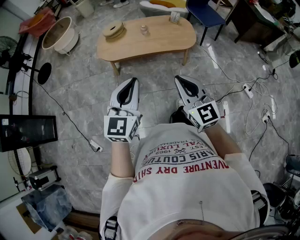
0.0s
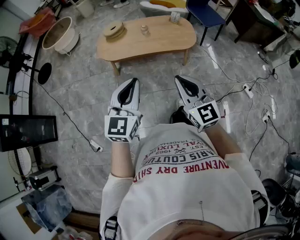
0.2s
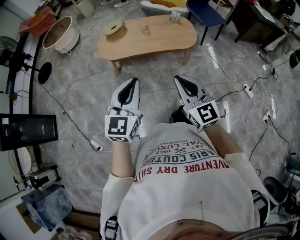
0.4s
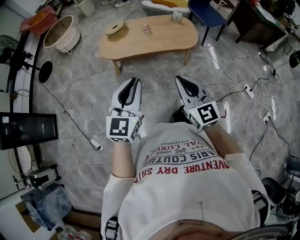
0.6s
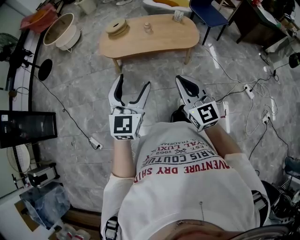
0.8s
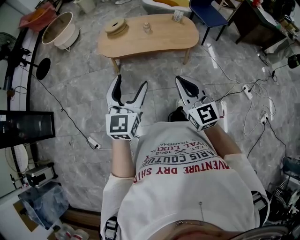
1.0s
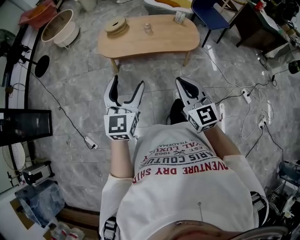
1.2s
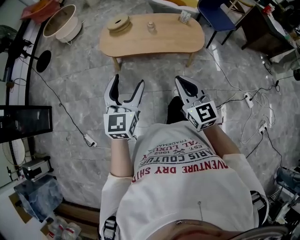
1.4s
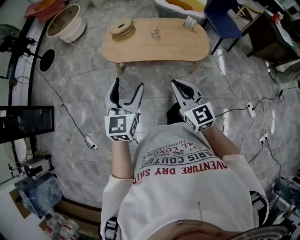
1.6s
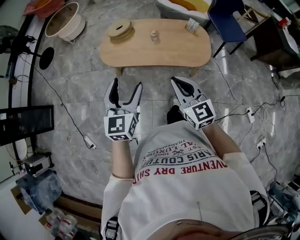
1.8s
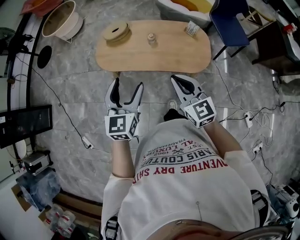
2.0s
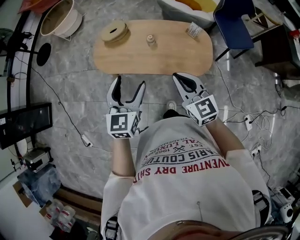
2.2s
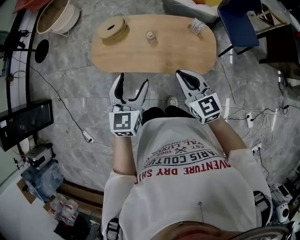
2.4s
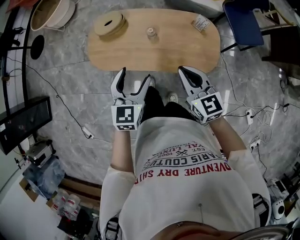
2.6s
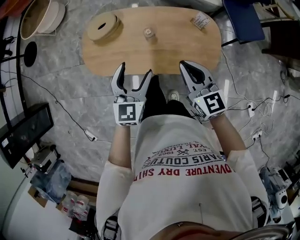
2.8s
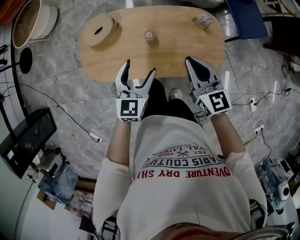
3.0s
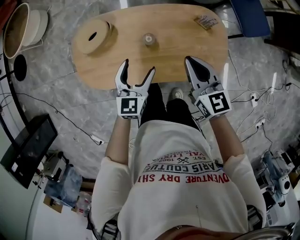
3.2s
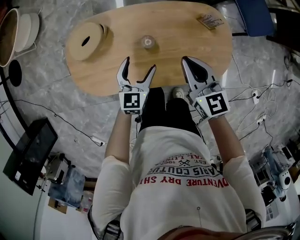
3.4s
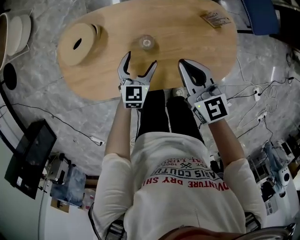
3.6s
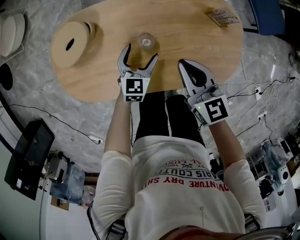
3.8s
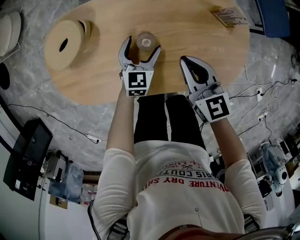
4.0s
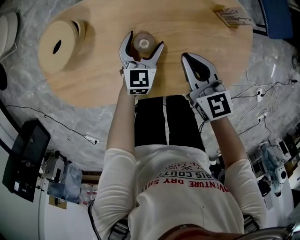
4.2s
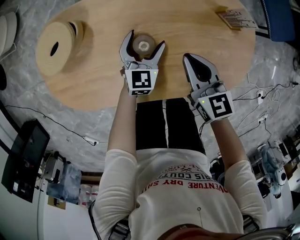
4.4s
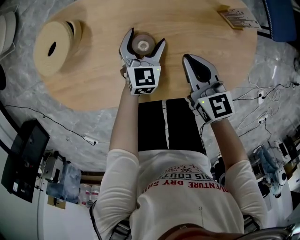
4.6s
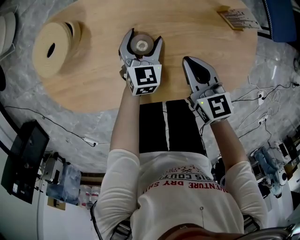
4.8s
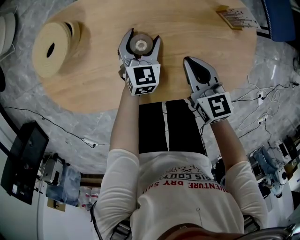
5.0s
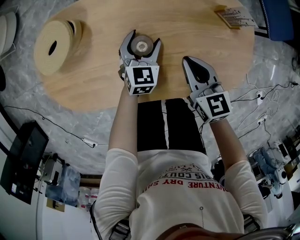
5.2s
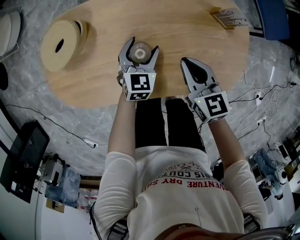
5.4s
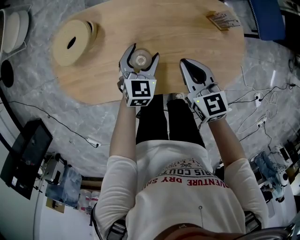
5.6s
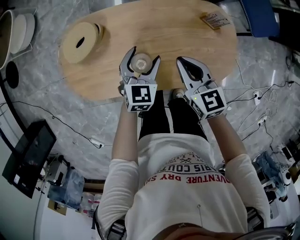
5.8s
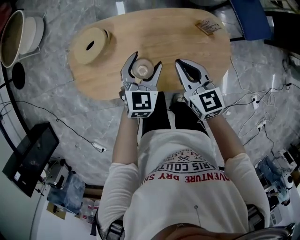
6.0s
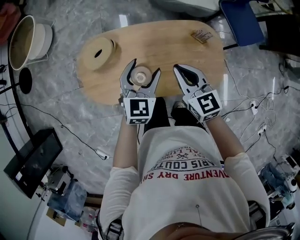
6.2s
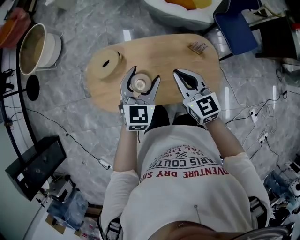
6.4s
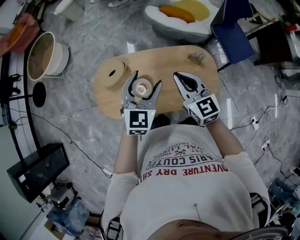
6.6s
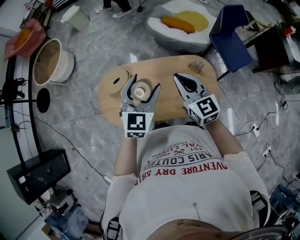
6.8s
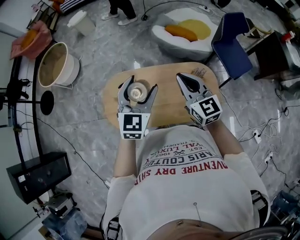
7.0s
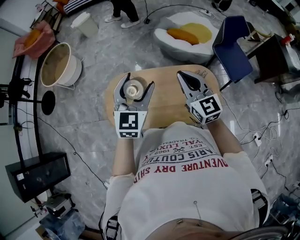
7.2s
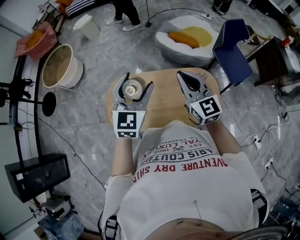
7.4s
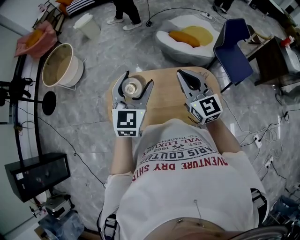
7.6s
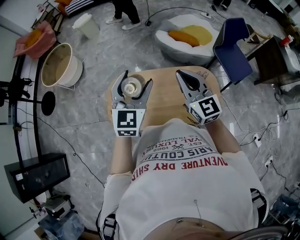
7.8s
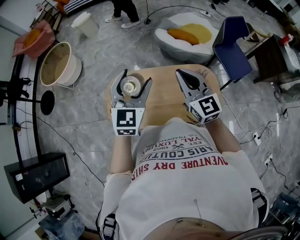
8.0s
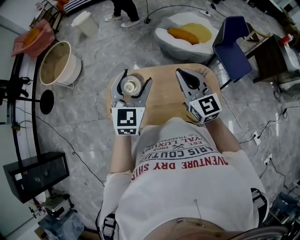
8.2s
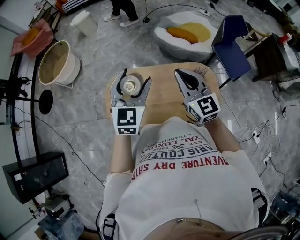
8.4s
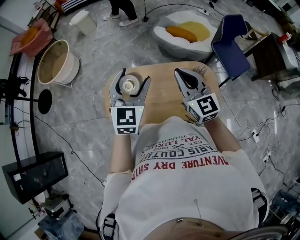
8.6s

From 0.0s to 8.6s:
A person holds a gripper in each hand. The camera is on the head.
From 0.0s to 1.4s: Both grippers travel together forward, about 5 cm. The left gripper opens its fingers.
From 1.4s to 2.8s: The two grippers travel together, forward and to the right, some 50 cm.
From 2.8s to 4.4s: The grippers both shift downward and forward by roughly 40 cm. The right gripper changes its angle by approximately 20 degrees.
From 4.4s to 5.8s: The two grippers go roughly 15 cm upward.
From 5.8s to 7.2s: Both grippers move upward, about 35 cm. The right gripper swivels about 30 degrees. The left gripper changes its angle by roughly 30 degrees.
From 7.2s to 8.6s: The grippers move only a little.

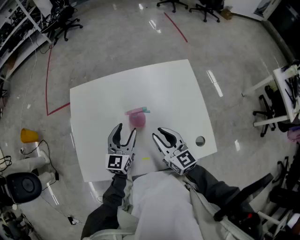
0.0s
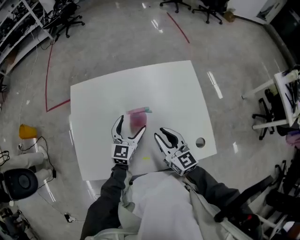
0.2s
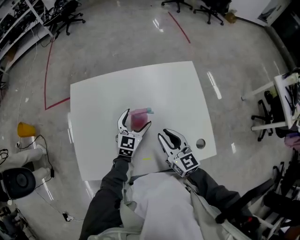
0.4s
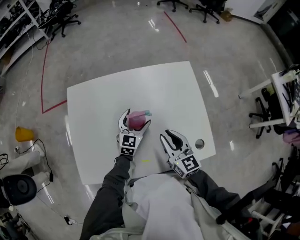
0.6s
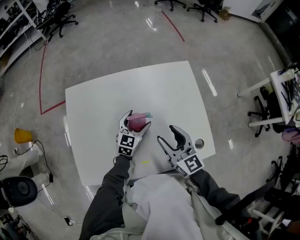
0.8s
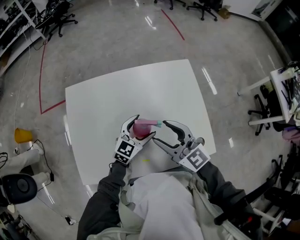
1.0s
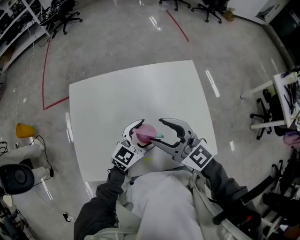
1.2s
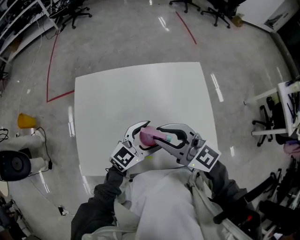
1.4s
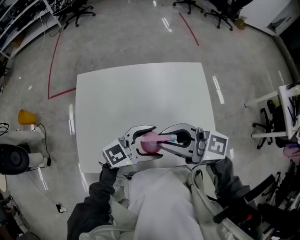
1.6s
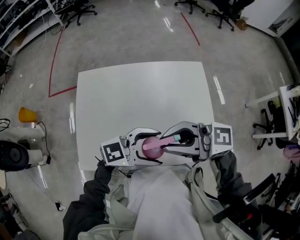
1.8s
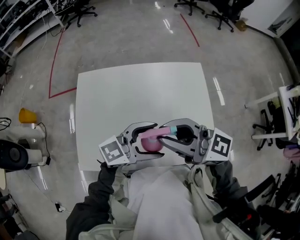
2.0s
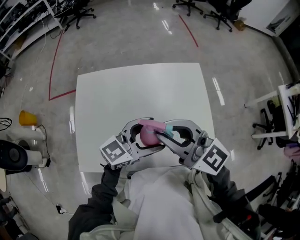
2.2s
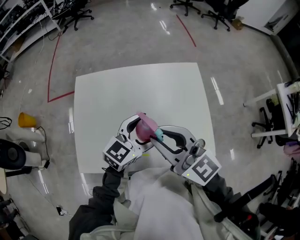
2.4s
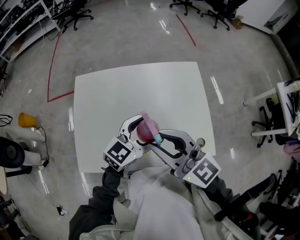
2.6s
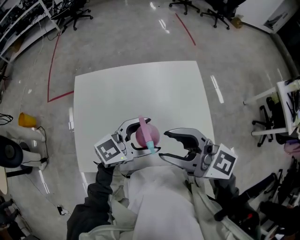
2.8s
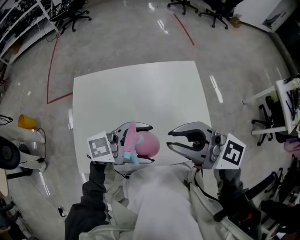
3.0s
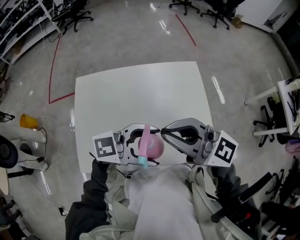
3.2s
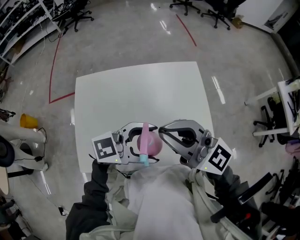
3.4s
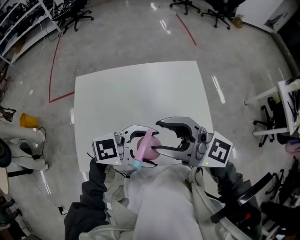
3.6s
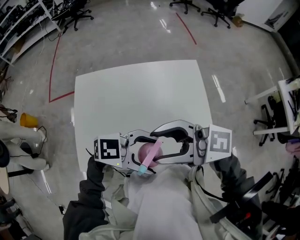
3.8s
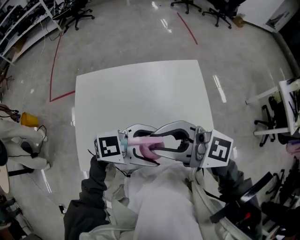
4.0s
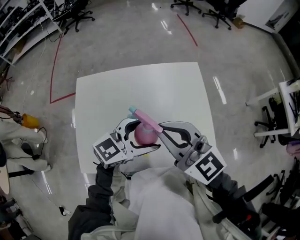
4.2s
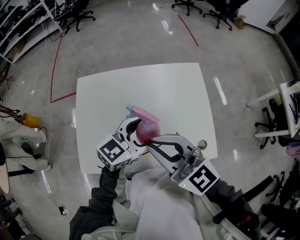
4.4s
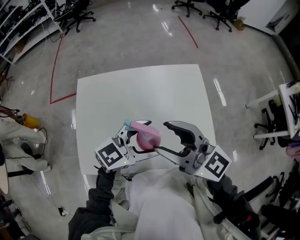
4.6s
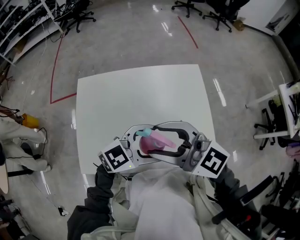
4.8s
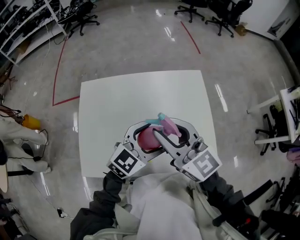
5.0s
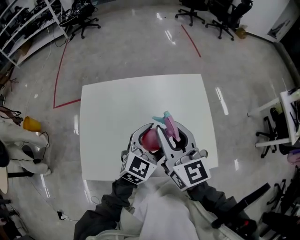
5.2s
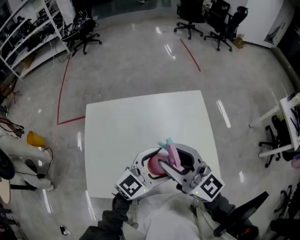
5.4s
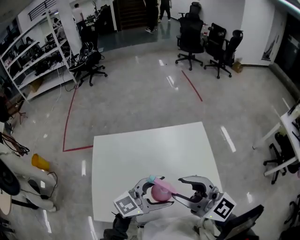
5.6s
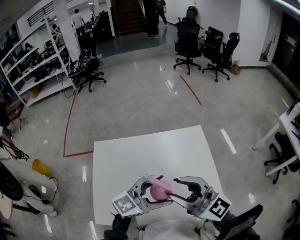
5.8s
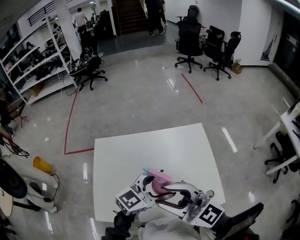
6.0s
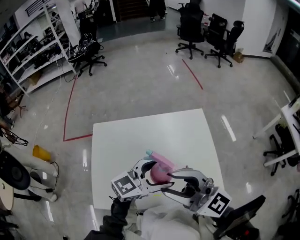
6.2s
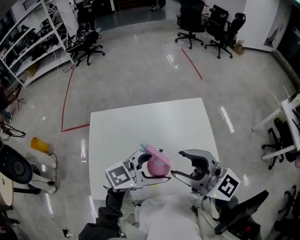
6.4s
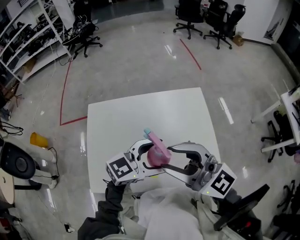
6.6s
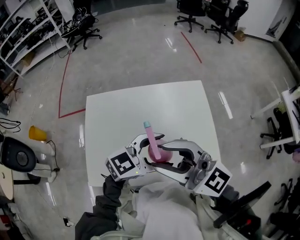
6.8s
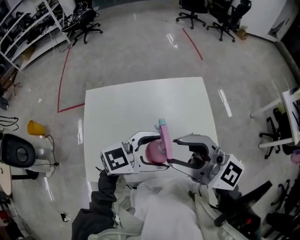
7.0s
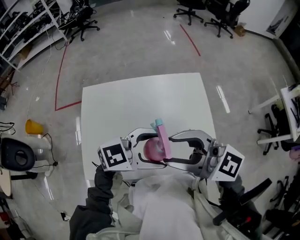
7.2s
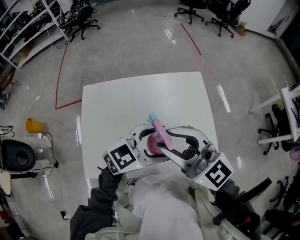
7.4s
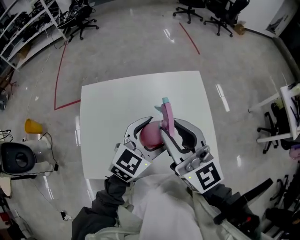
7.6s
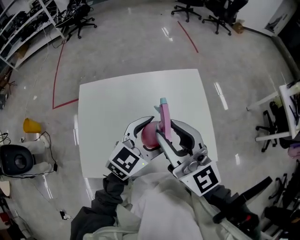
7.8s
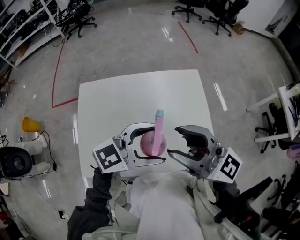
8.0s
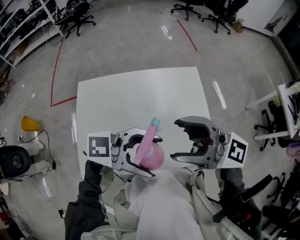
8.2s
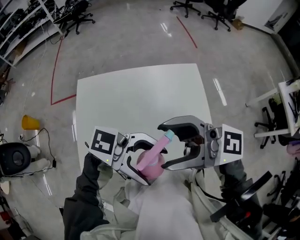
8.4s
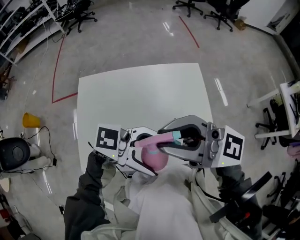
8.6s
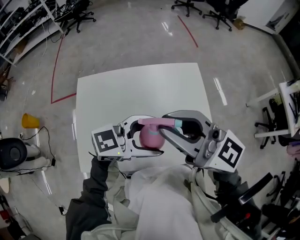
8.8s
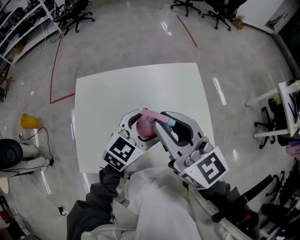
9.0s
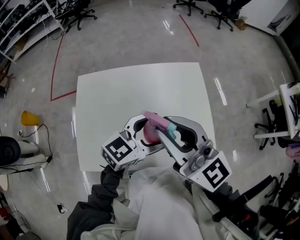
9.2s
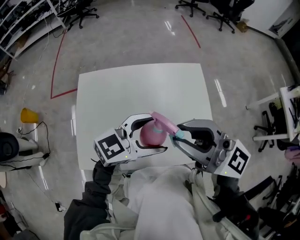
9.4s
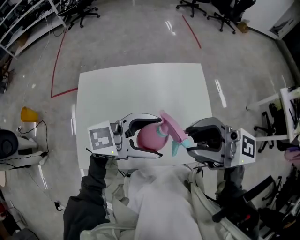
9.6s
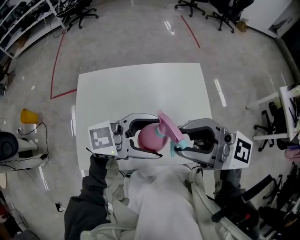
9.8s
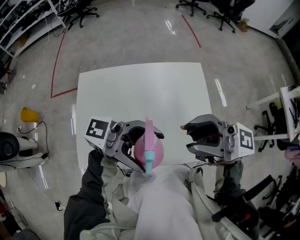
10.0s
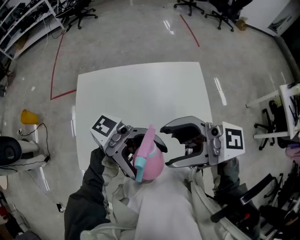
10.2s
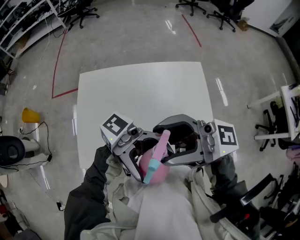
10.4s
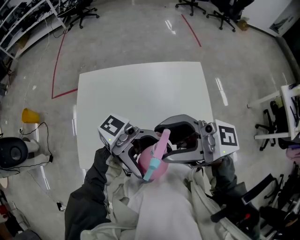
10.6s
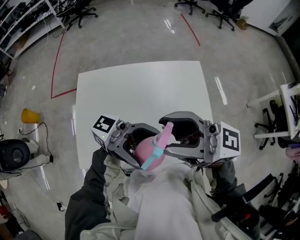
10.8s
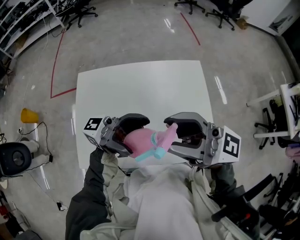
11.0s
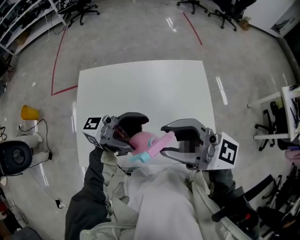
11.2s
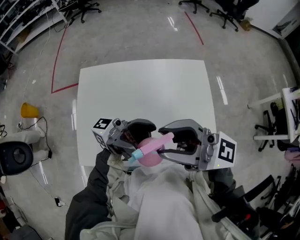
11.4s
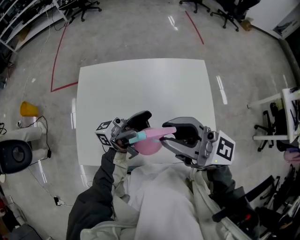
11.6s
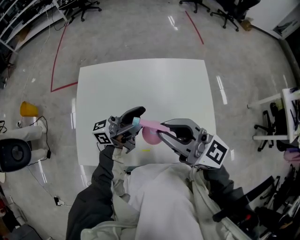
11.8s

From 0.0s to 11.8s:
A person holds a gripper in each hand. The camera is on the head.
From 0.0s to 1.4s: The left gripper travels to the right by about 10 cm, swivels roughly 40 degrees, and opens, while the right gripper goes about 15 cm upward, changes its angle by approximately 30 degrees, and opens and closes again.
From 1.4s to 3.0s: Both grippers move upward, about 10 cm. The left gripper swivels some 30 degrees.
From 3.0s to 4.4s: The right gripper shifts by roughly 5 cm, and closes. The left gripper shifts by some 5 cm, and swivels roughly 30 degrees.
From 4.4s to 6.0s: The right gripper goes some 5 cm upward, and opens.
From 7.4s to 8.8s: The right gripper opens, then closes again.
From 8.8s to 10.4s: The right gripper changes its angle by roughly 40 degrees, and opens. Meanwhile the left gripper moves some 10 cm, and angles its fingers upward, by approximately 40 degrees.
From 10.4s to 11.8s: The right gripper moves downward, about 10 cm, changes its angle by some 30 degrees, and closes up, while the left gripper shifts by approximately 20 cm, and rotates some 60 degrees.

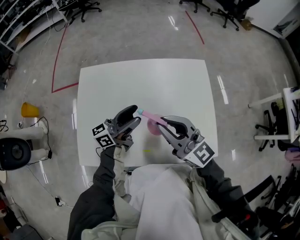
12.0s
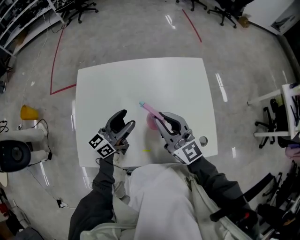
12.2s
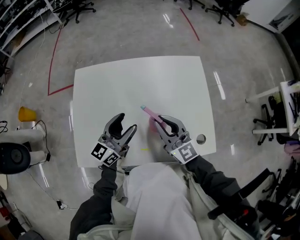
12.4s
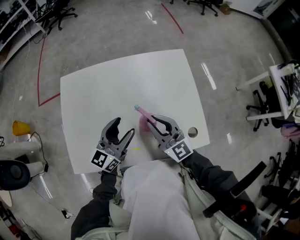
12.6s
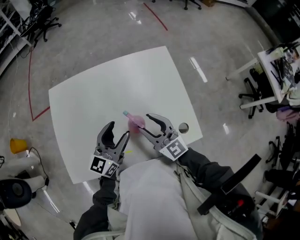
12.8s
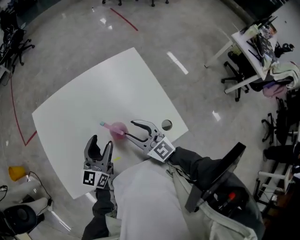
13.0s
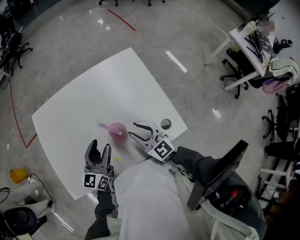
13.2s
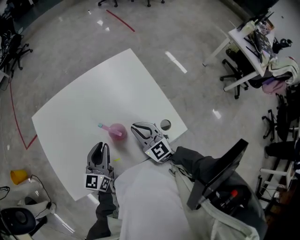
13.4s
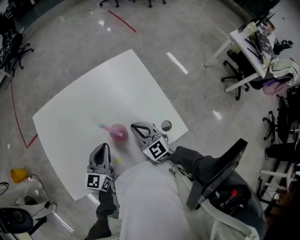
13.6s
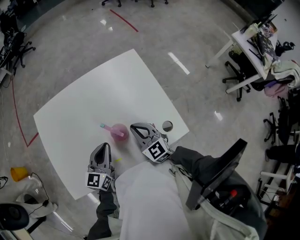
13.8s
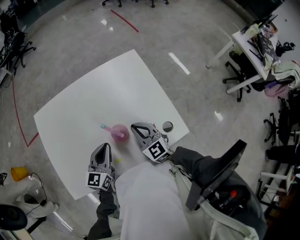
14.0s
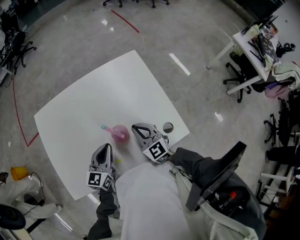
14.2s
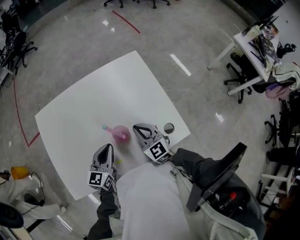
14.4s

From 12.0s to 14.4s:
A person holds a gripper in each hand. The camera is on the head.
From 12.0s to 13.2s: The left gripper moves backward and downward, approximately 10 cm, and rotates some 40 degrees, while the right gripper travels downward and to the right by approximately 20 cm, changes its angle by about 30 degrees, and opens its fingers.
From 13.2s to 14.4s: The left gripper closes up. The right gripper closes.

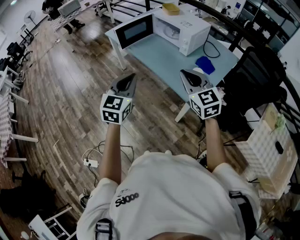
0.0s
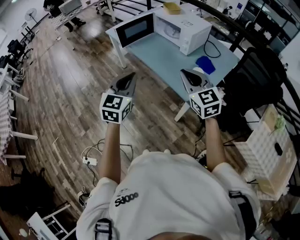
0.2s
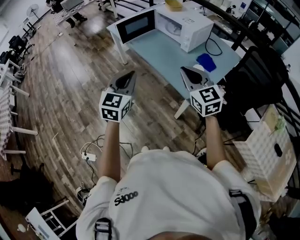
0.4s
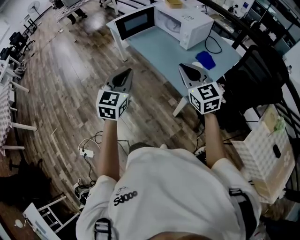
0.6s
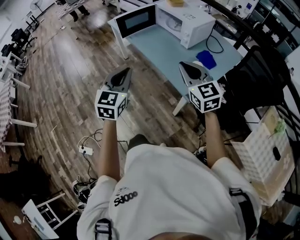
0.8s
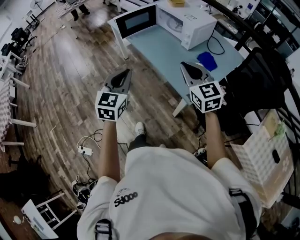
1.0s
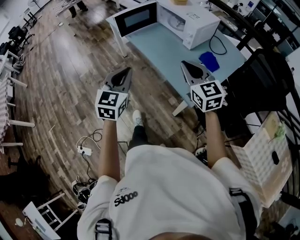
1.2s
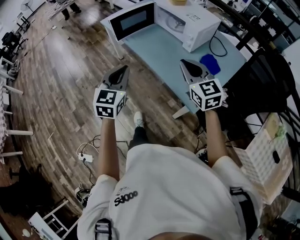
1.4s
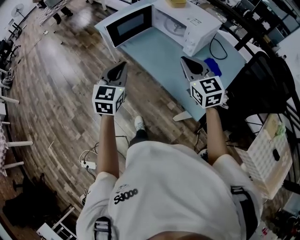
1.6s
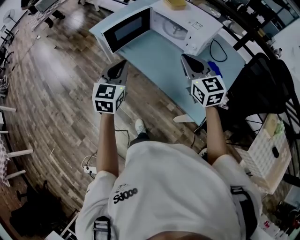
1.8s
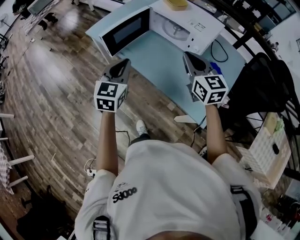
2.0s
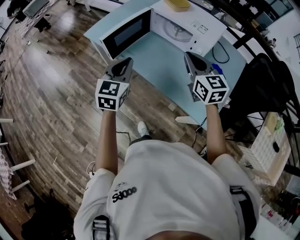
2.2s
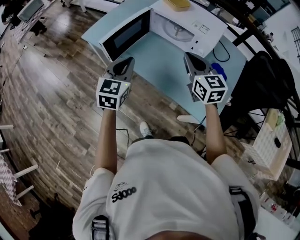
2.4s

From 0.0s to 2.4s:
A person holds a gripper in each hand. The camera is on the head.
From 0.0s to 1.2s: The right gripper moves forward, about 5 cm; the left gripper shifts by some 5 cm.
From 1.2s to 2.4s: Both grippers move forward, about 35 cm. The right gripper rotates some 20 degrees.
